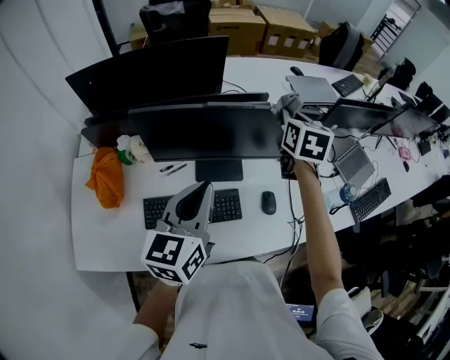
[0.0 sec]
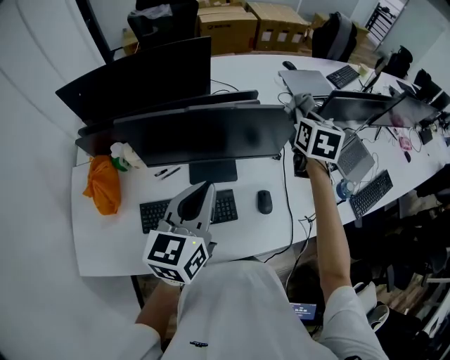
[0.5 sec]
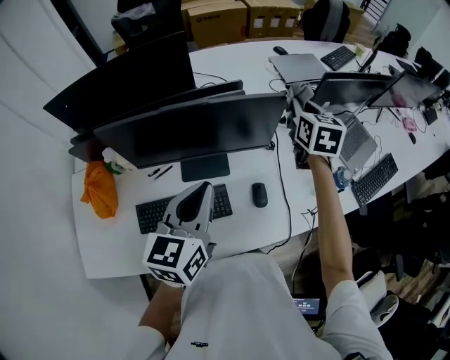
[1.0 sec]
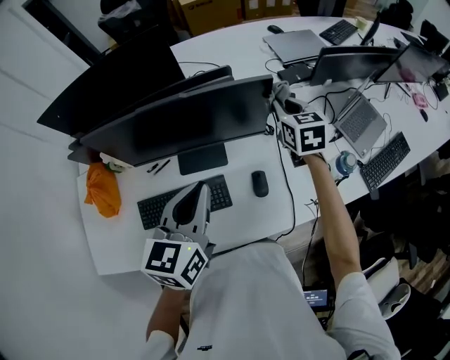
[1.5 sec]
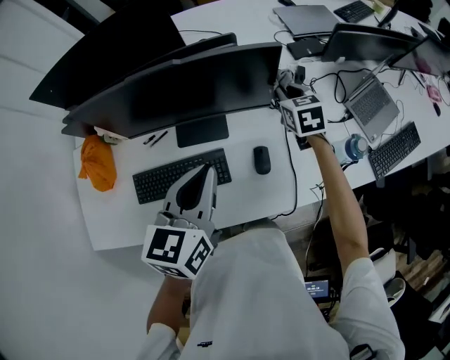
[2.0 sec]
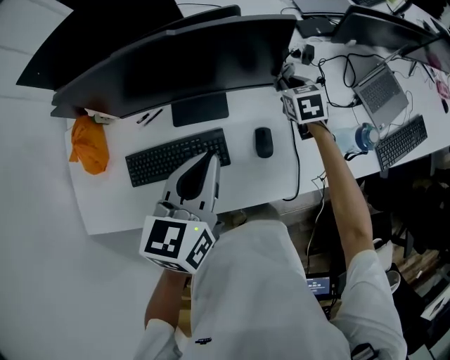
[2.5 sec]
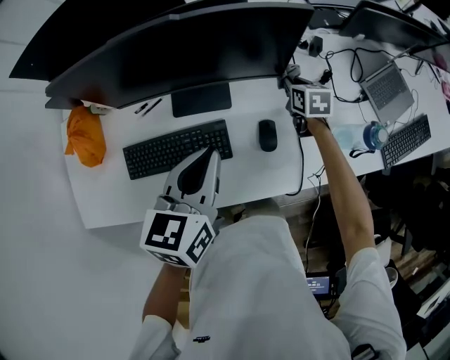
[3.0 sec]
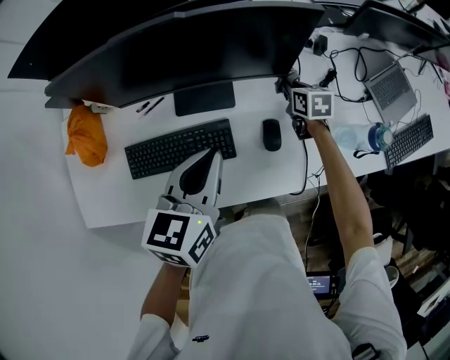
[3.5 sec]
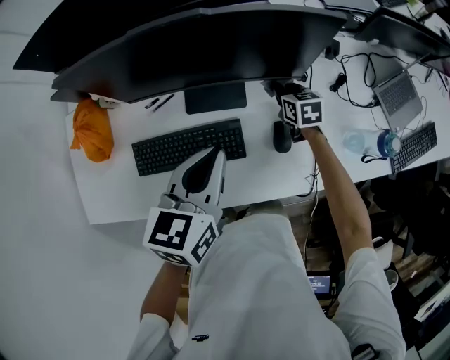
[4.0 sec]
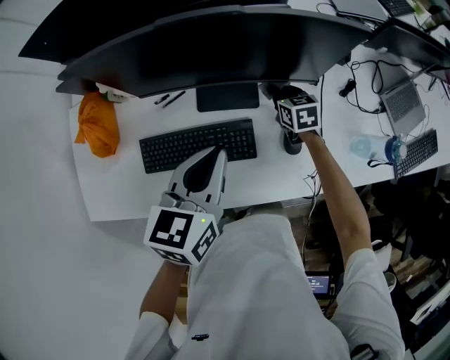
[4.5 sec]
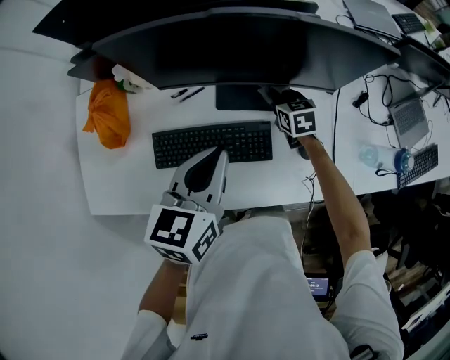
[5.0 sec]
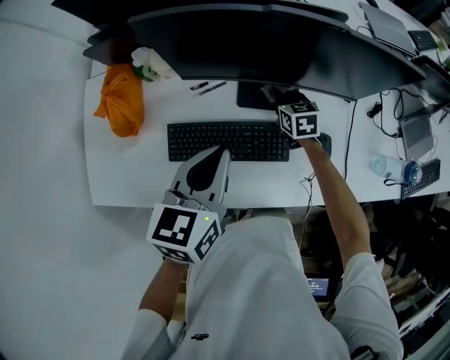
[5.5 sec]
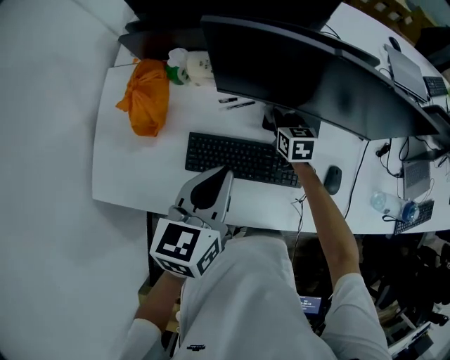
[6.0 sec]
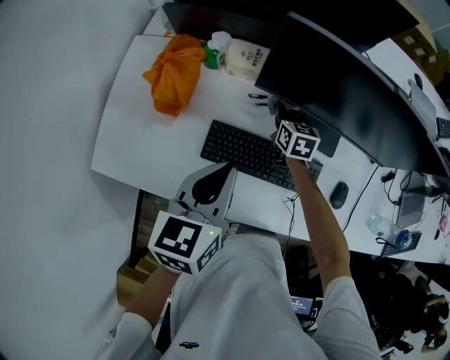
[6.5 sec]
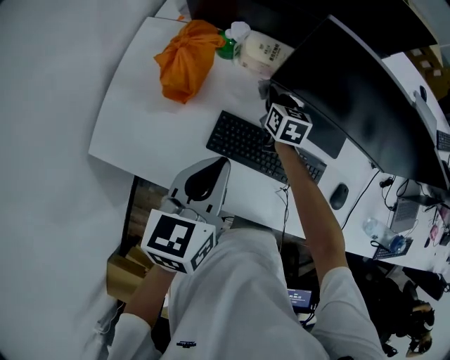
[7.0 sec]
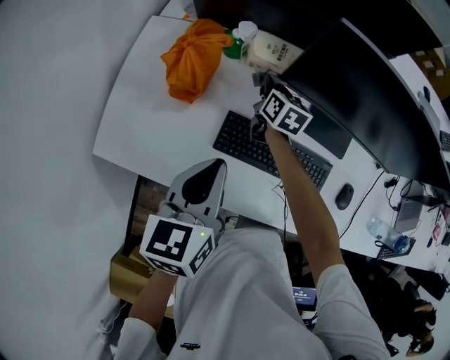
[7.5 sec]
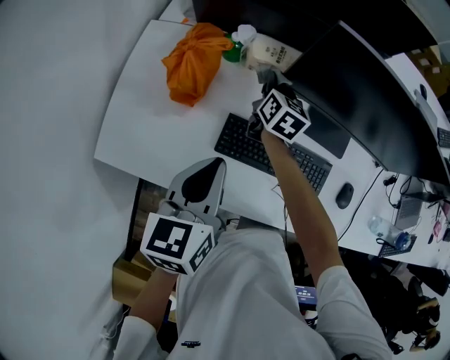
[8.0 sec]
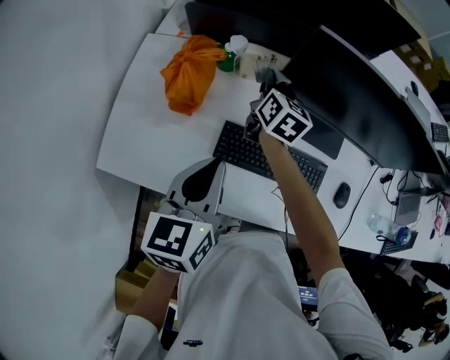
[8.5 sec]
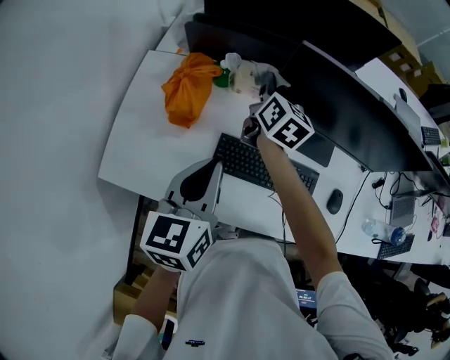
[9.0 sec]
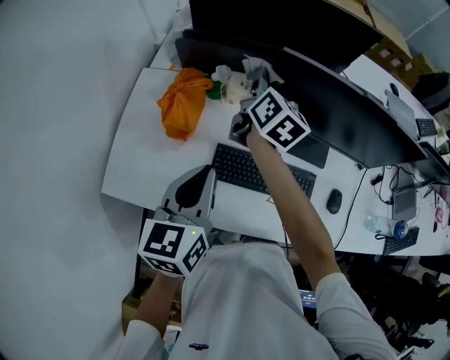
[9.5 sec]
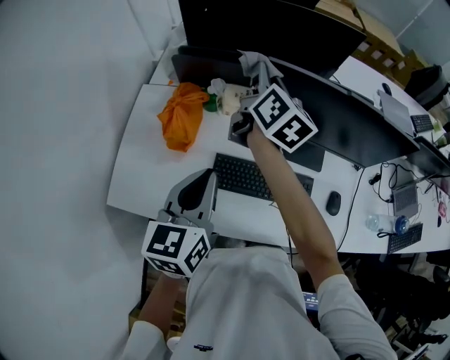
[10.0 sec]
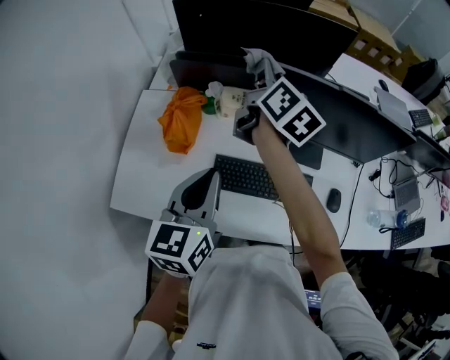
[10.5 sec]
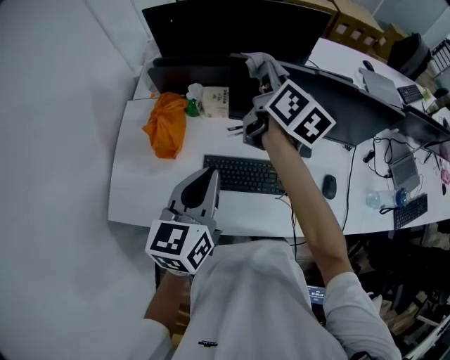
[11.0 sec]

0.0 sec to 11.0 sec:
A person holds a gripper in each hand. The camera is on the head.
0.0 sec to 2.0 sec: The left gripper shifts about 15 cm to the right and downward. The right gripper travels downward and to the right by approximately 20 cm.
2.0 sec to 3.5 sec: The left gripper goes about 5 cm downward; the right gripper moves downward, approximately 15 cm, and changes its angle by some 20 degrees.
3.5 sec to 5.5 sec: Both grippers move to the left, roughly 20 cm.
5.5 sec to 7.5 sec: The two grippers go about 25 cm to the left. The left gripper changes its angle by about 20 degrees.
7.5 sec to 9.0 sec: The right gripper goes some 15 cm upward; the left gripper heads upward, covering some 5 cm.
9.0 sec to 11.0 sec: The right gripper shifts approximately 20 cm upward and to the right; the left gripper goes approximately 5 cm to the right.

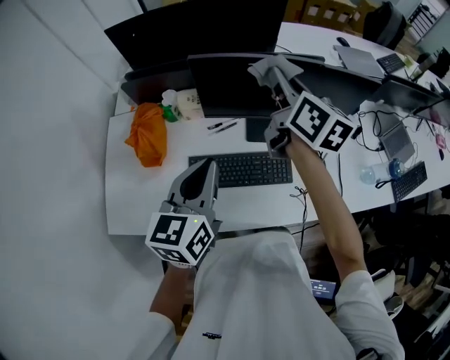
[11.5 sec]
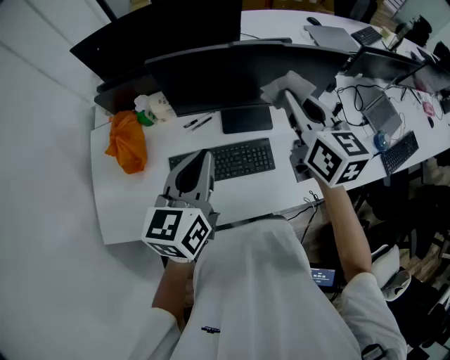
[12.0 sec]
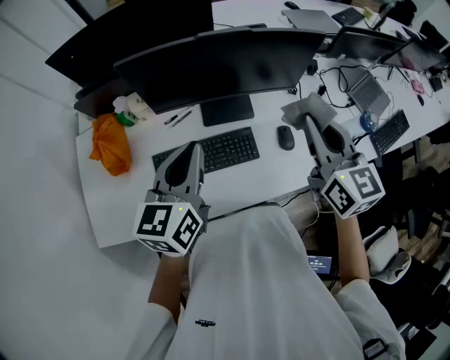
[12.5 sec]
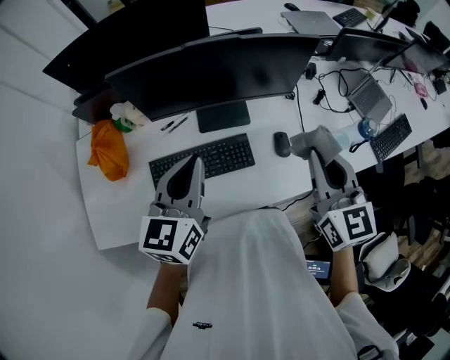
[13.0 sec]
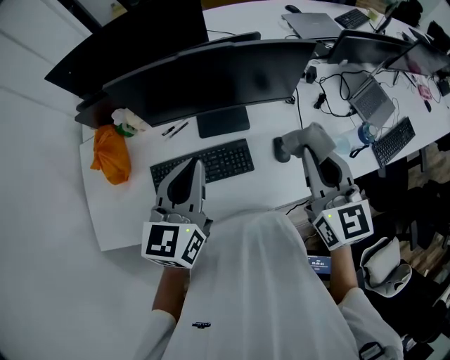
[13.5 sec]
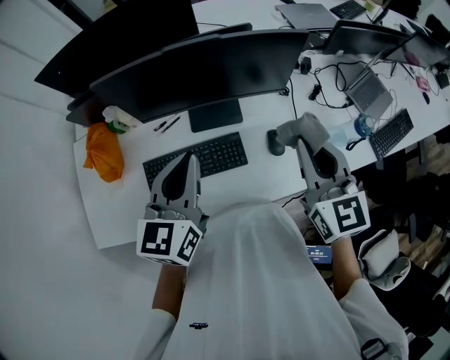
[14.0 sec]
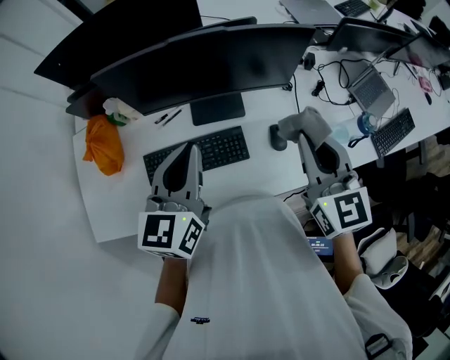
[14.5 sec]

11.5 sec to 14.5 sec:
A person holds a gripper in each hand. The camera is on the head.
11.5 sec to 13.0 sec: The right gripper goes roughly 30 cm to the right and backward, and rotates roughly 30 degrees. Meanwhile the left gripper travels to the right by roughly 15 cm.
13.0 sec to 14.5 sec: There are only small adjustments of the grippers.

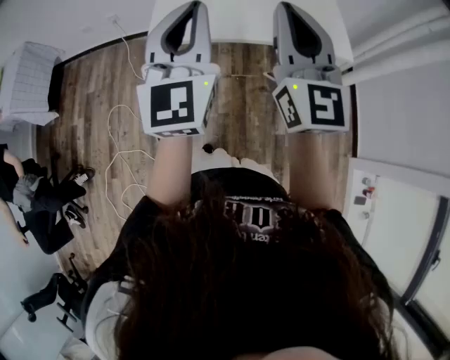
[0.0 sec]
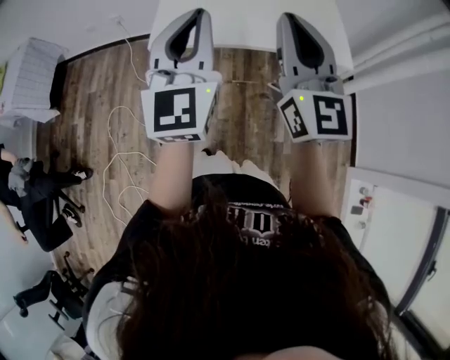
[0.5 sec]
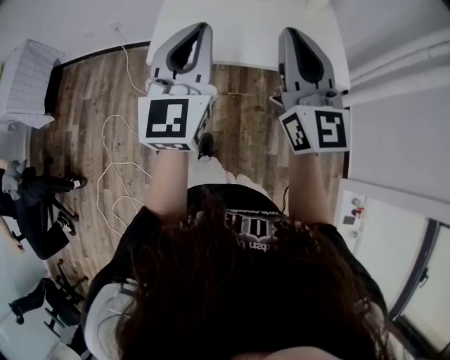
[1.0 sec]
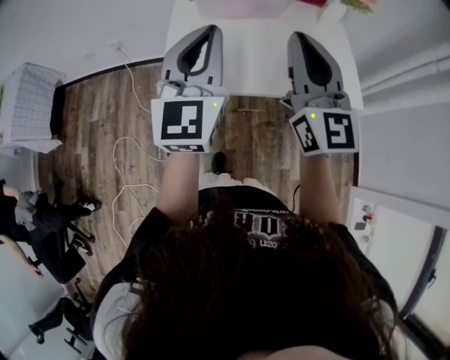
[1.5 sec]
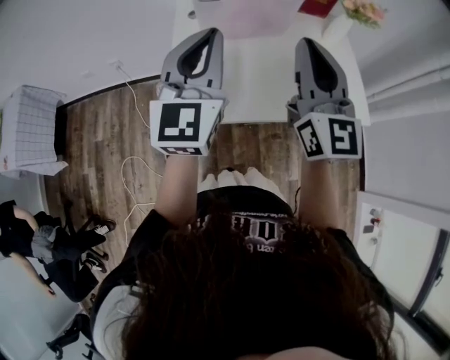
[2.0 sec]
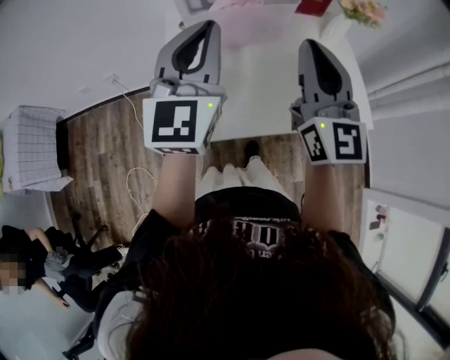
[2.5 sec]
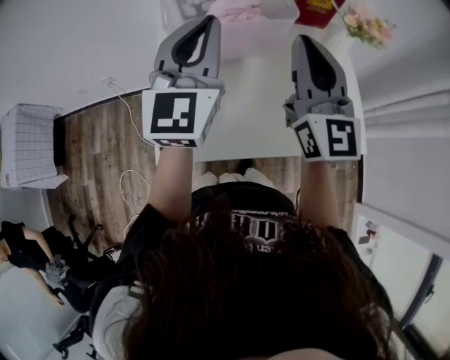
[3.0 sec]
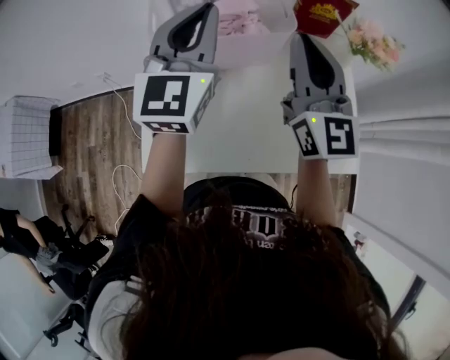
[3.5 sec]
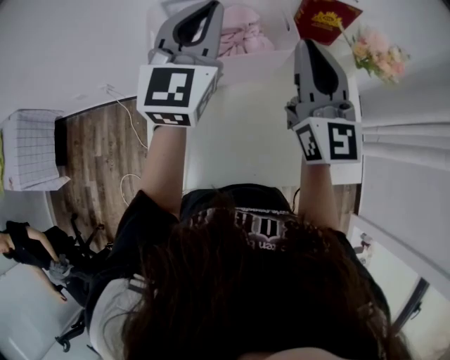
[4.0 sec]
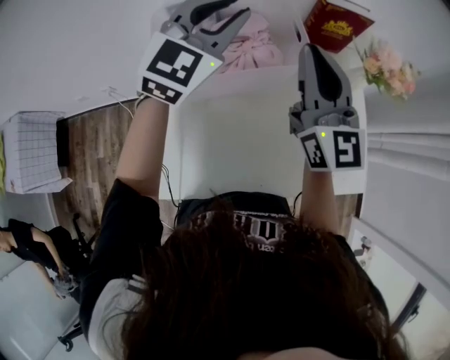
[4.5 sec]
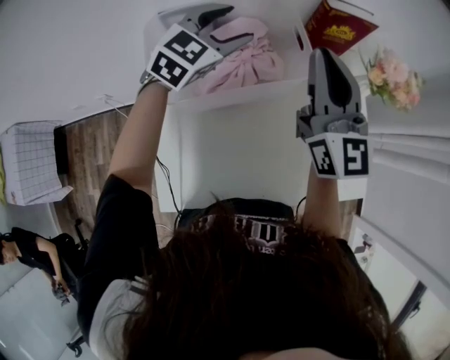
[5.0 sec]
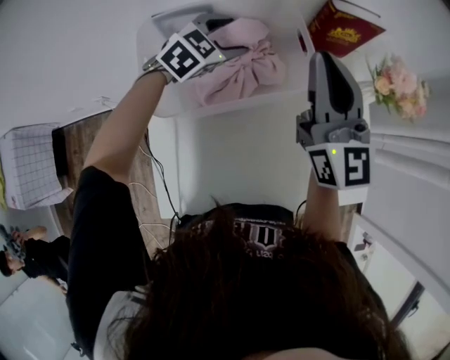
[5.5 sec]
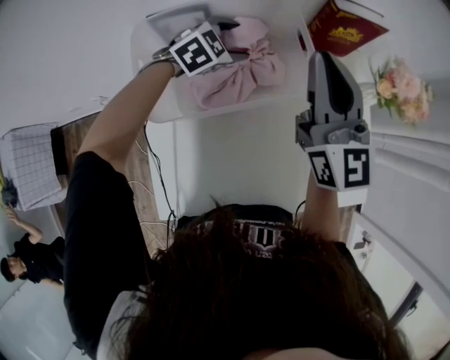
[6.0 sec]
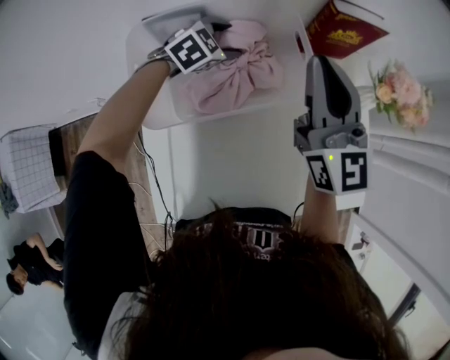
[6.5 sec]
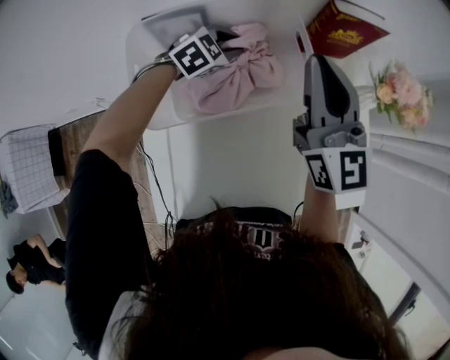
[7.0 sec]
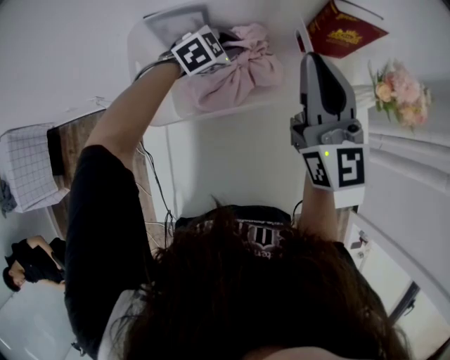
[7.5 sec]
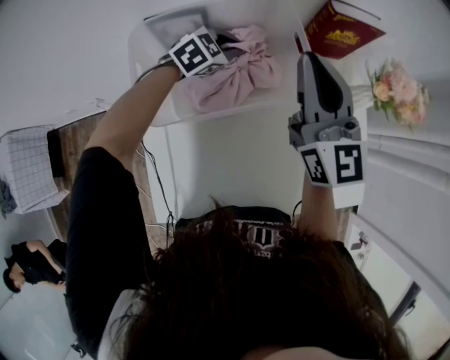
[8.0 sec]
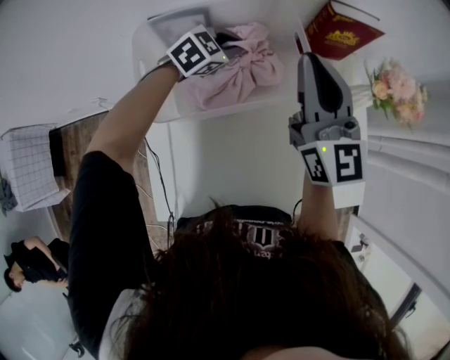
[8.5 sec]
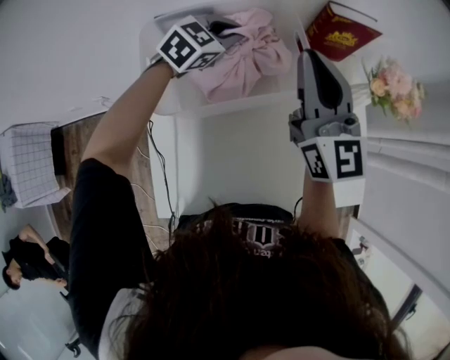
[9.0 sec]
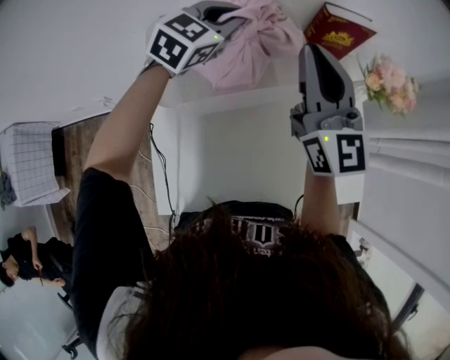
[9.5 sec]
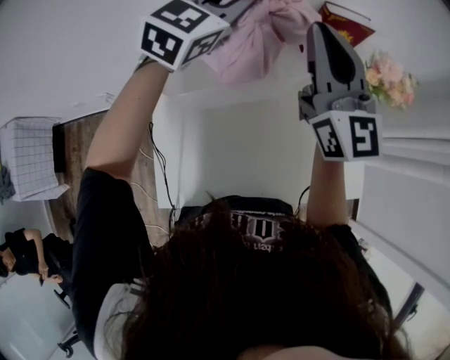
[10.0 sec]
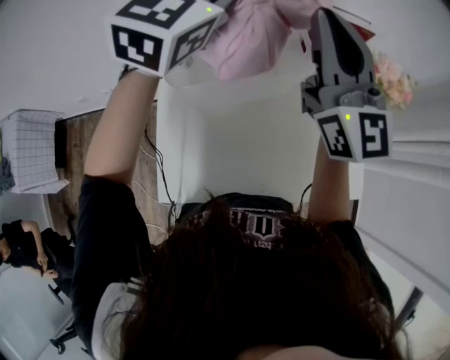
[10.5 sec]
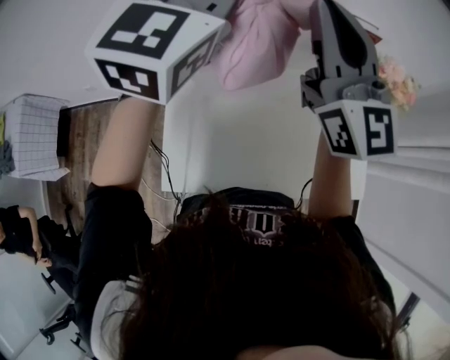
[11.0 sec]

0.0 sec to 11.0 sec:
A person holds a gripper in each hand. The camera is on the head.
0.0 sec to 2.0 sec: The grippers both shift forward by about 20 cm.
2.0 sec to 3.5 sec: The two grippers go about 20 cm forward.
3.5 sec to 5.5 sec: The right gripper moves forward, some 15 cm, while the left gripper heads forward and downward, covering about 30 cm, angles its fingers downward, by roughly 40 degrees, and opens up.
5.5 sec to 7.5 sec: The left gripper travels downward by about 10 cm, and closes.
7.5 sec to 9.0 sec: The left gripper shifts approximately 10 cm upward.
9.0 sec to 11.0 sec: The left gripper goes roughly 35 cm upward and backward, and tilts its fingers approximately 30 degrees upward. Meanwhile the right gripper is displaced upward and backward by roughly 15 cm.

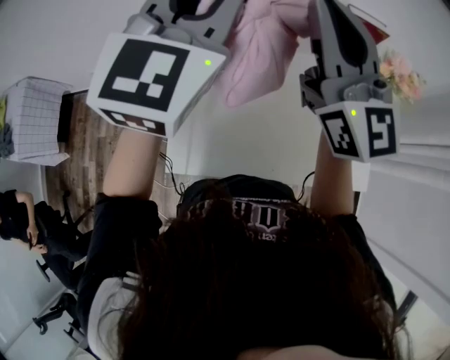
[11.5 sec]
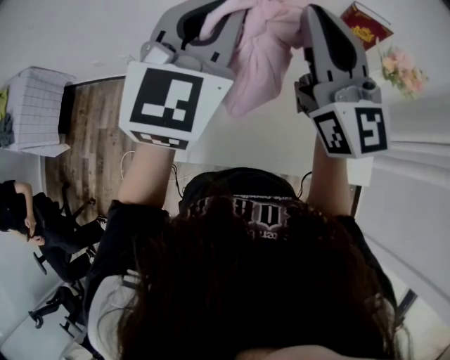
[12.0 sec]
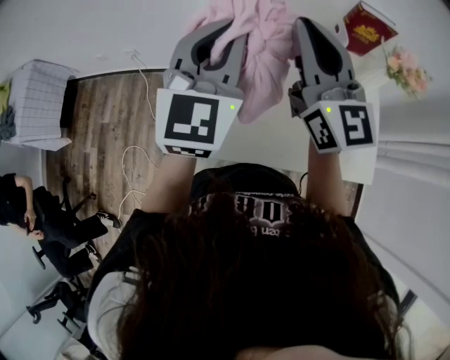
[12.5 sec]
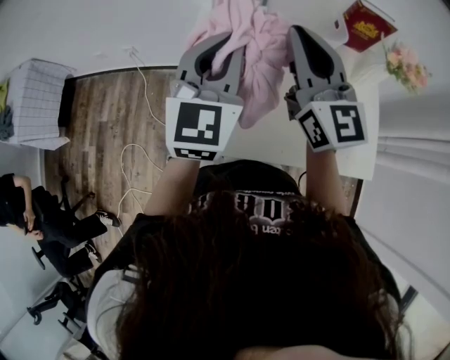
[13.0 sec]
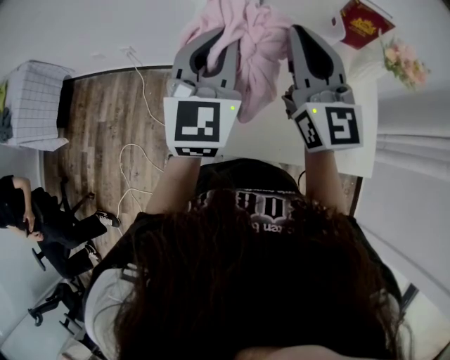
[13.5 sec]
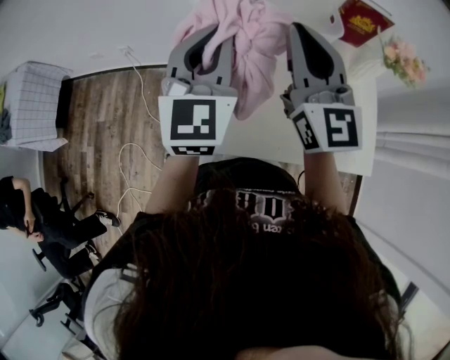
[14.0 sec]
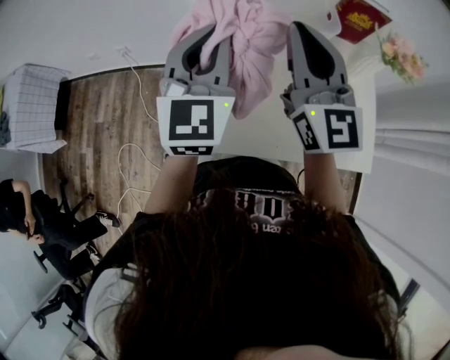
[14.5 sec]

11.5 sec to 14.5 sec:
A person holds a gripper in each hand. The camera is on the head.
11.5 sec to 13.0 sec: The left gripper is displaced downward and backward by some 15 cm. The right gripper heads downward, covering roughly 10 cm.
13.0 sec to 14.5 sec: The grippers move only a little.
